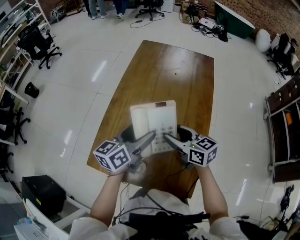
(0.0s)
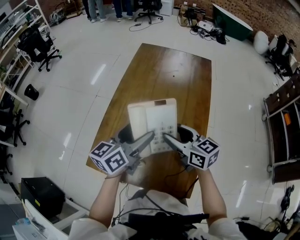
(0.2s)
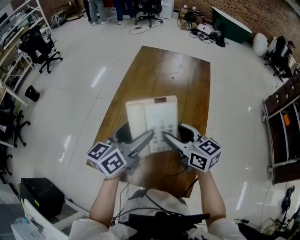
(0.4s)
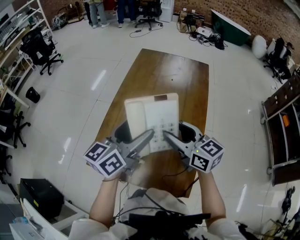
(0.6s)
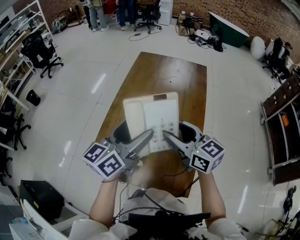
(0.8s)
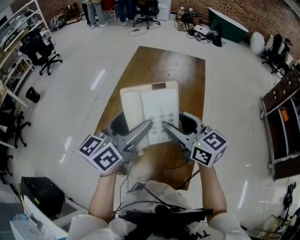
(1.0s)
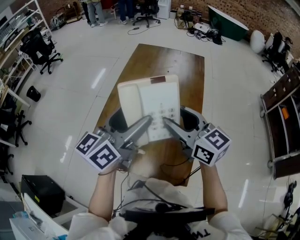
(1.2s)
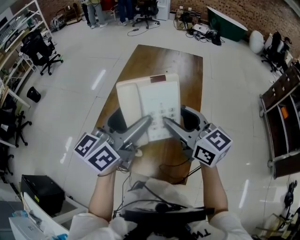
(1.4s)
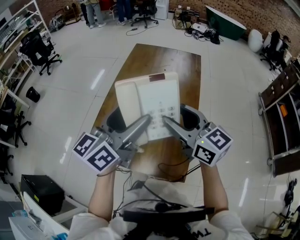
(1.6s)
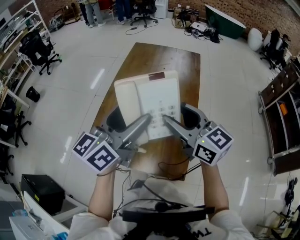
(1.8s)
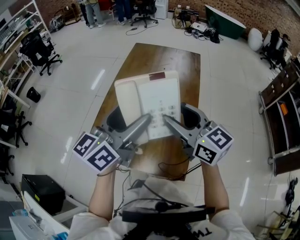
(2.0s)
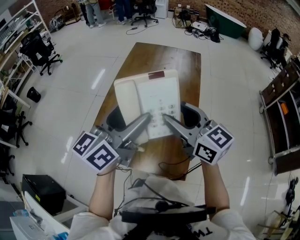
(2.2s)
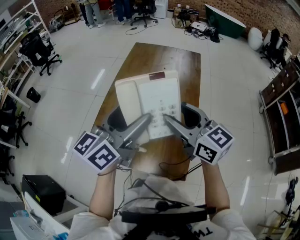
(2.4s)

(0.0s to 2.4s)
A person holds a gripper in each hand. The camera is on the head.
0.0s - 1.2s: Both grippers travel together upward and backward, roughly 15 cm.
1.2s - 2.4s: The grippers stay close to where they were, moving slightly.

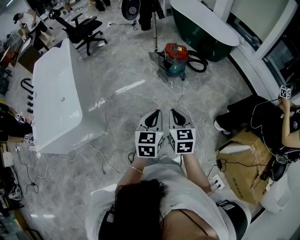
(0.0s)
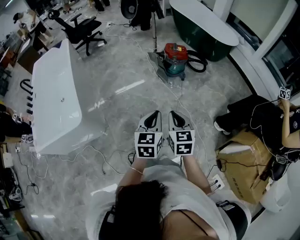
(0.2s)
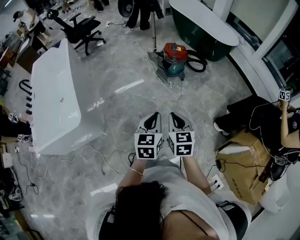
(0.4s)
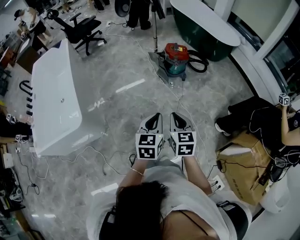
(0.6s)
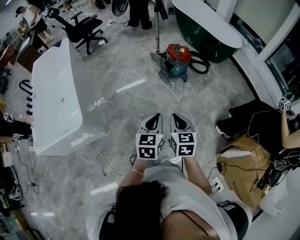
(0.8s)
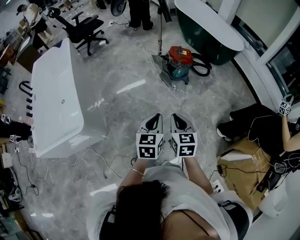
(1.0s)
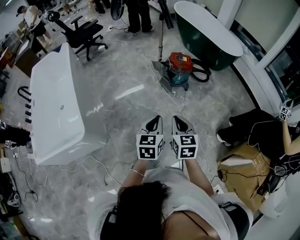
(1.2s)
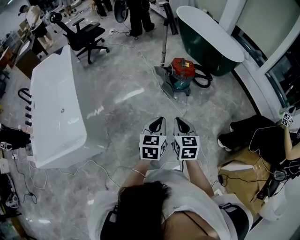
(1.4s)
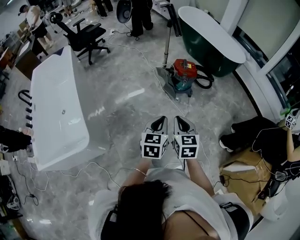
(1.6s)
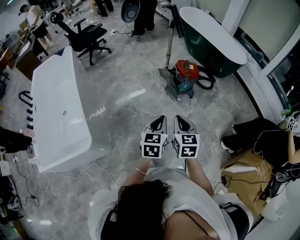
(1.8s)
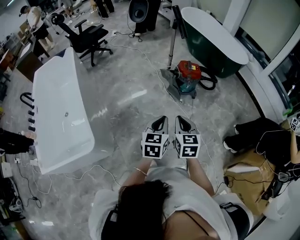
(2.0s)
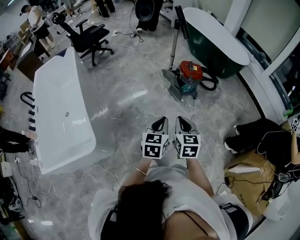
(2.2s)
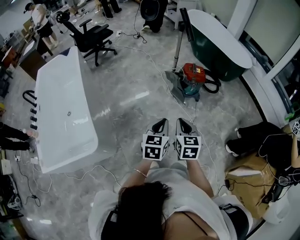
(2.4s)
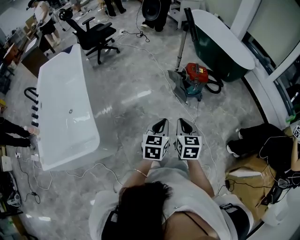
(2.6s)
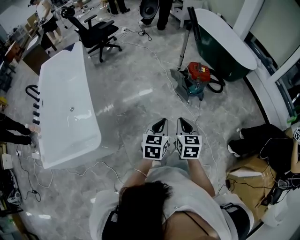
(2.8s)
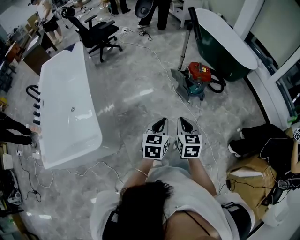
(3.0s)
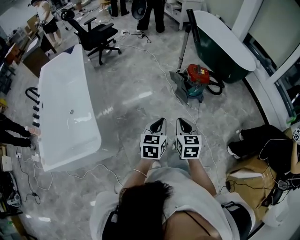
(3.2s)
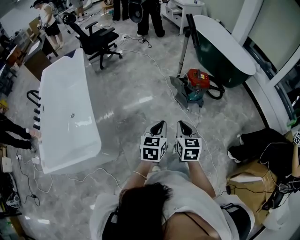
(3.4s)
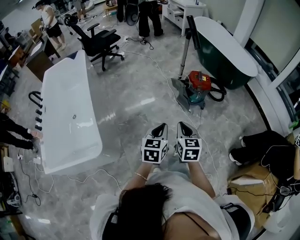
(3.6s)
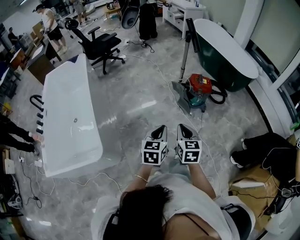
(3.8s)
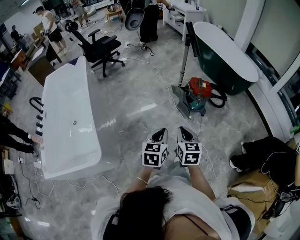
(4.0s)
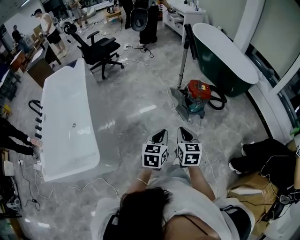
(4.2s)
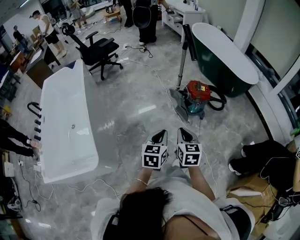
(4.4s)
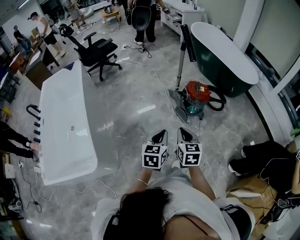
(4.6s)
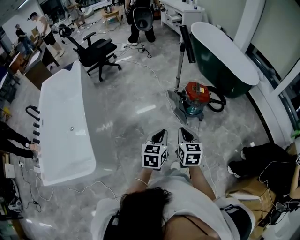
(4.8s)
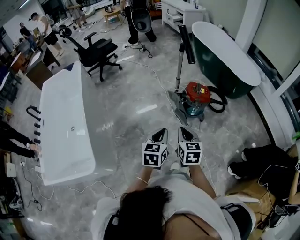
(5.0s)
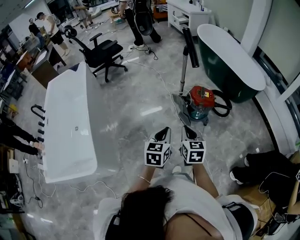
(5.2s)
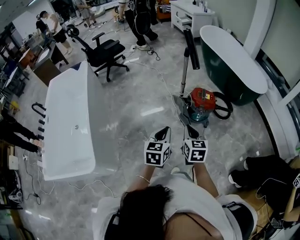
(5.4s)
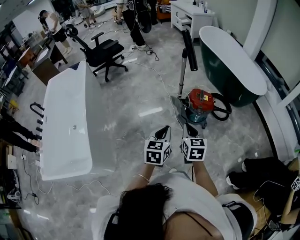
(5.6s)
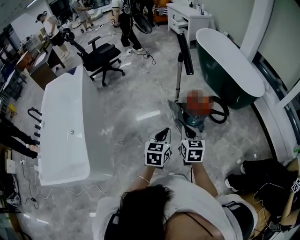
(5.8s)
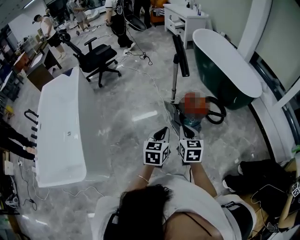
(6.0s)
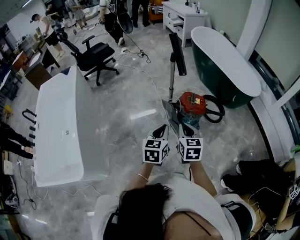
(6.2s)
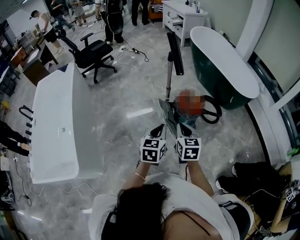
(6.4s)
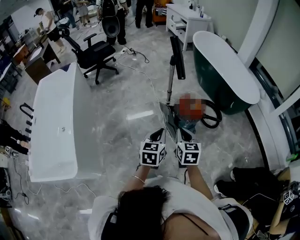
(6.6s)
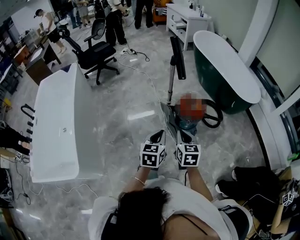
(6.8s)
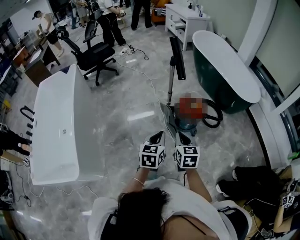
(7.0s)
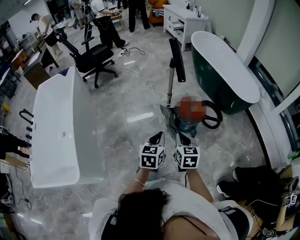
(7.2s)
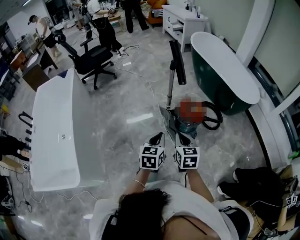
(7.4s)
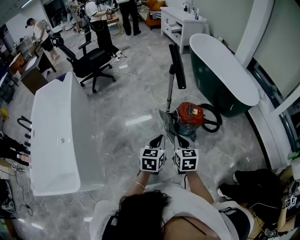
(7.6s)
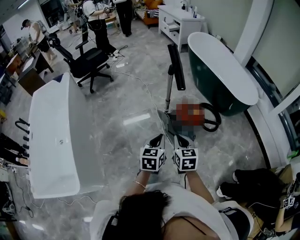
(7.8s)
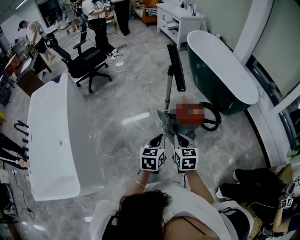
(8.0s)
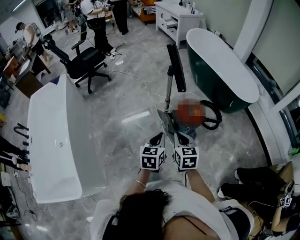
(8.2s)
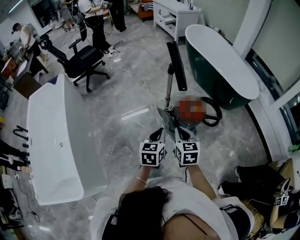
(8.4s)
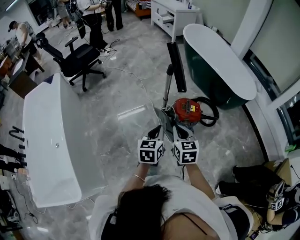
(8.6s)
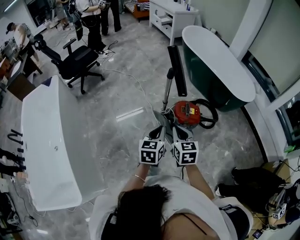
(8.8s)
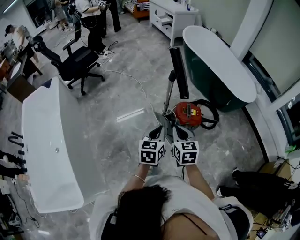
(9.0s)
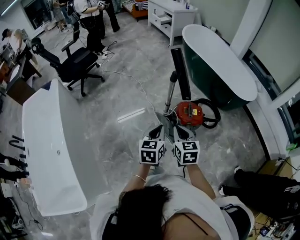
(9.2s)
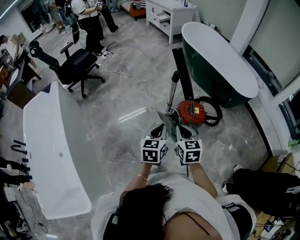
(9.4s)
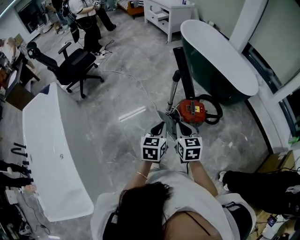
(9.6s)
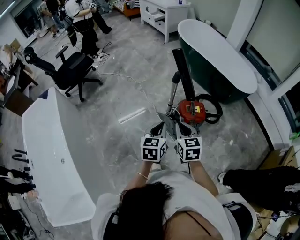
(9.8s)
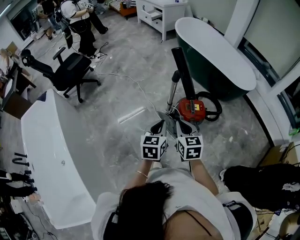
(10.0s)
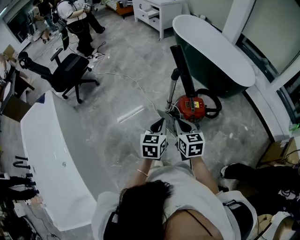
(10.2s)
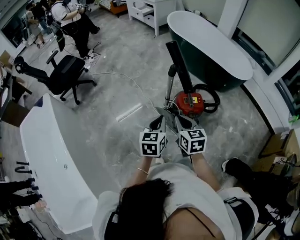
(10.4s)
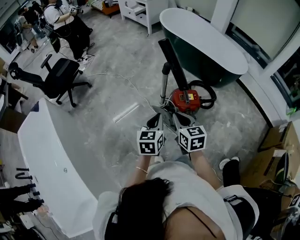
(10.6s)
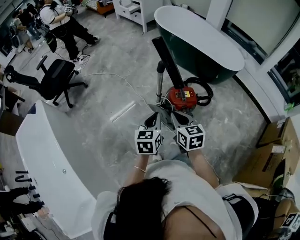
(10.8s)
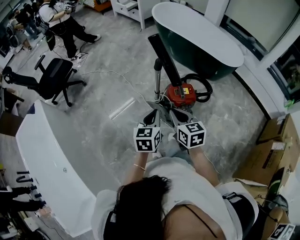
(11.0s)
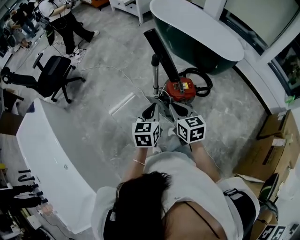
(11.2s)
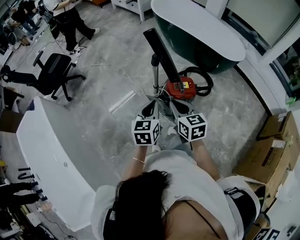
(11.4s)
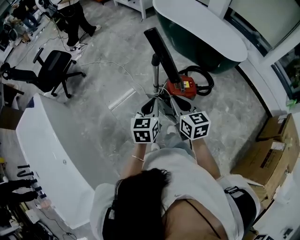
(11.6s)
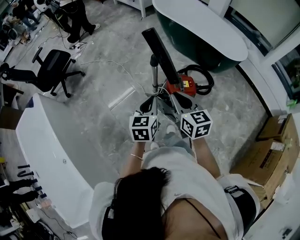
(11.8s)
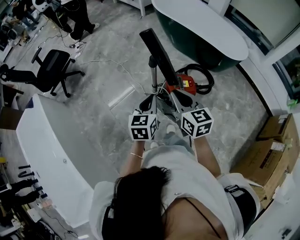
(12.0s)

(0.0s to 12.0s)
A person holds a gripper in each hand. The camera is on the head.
0.0s - 1.6s: Both grippers travel together forward and to the left, approximately 15 cm.
1.6s - 3.0s: The two grippers go roughly 10 cm to the left.
3.0s - 4.4s: Both grippers travel together forward, approximately 10 cm.
4.4s - 6.0s: Both grippers travel together forward and to the right, some 20 cm.
6.0s - 7.6s: The right gripper ends up roughly 5 cm from where it was, while the left gripper travels forward by approximately 5 cm.
7.6s - 9.0s: Both grippers travel together forward, roughly 15 cm.
9.0s - 10.4s: The left gripper is displaced forward by about 5 cm. Meanwhile the right gripper shifts by some 5 cm.
10.4s - 12.0s: The right gripper goes roughly 10 cm forward, to the right and upward; the left gripper shifts roughly 5 cm forward.

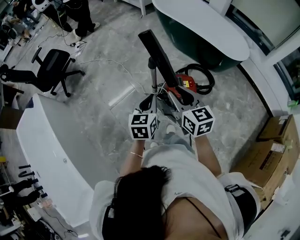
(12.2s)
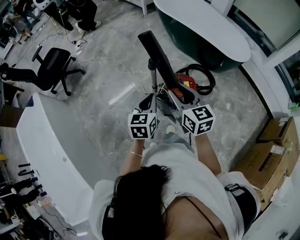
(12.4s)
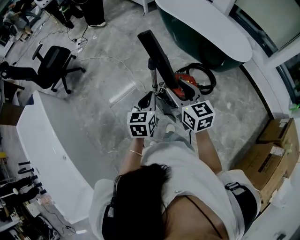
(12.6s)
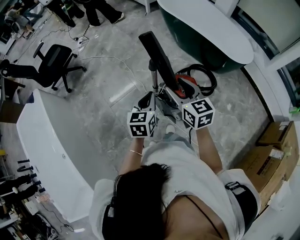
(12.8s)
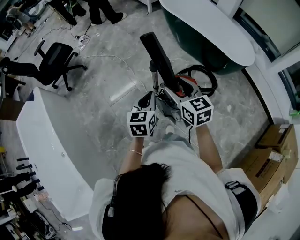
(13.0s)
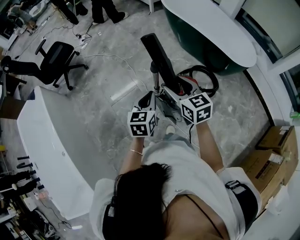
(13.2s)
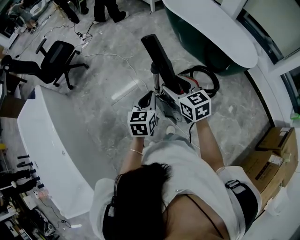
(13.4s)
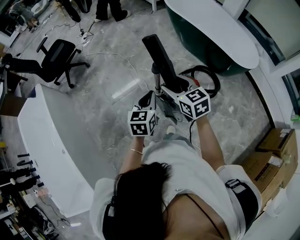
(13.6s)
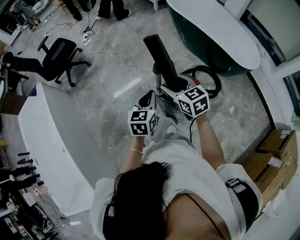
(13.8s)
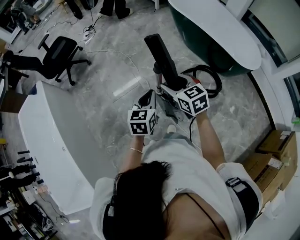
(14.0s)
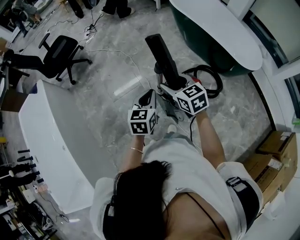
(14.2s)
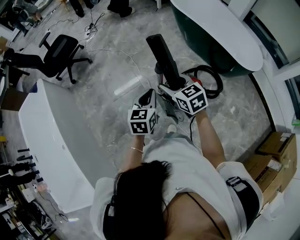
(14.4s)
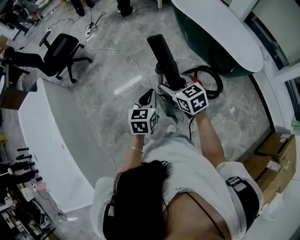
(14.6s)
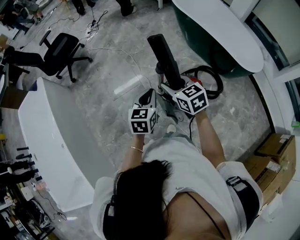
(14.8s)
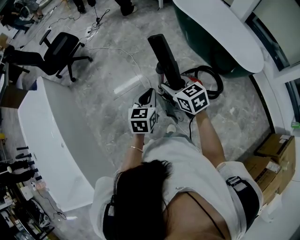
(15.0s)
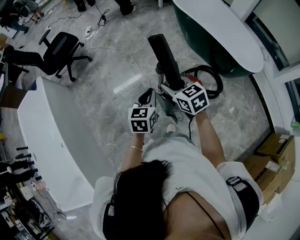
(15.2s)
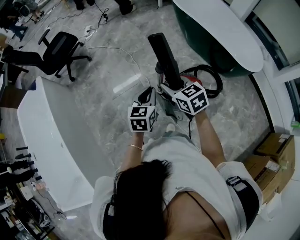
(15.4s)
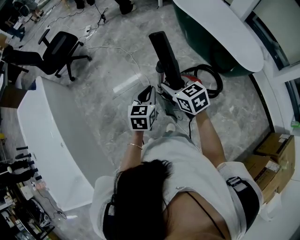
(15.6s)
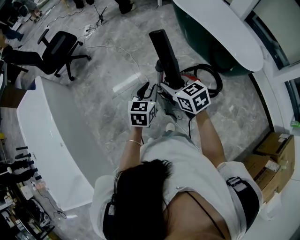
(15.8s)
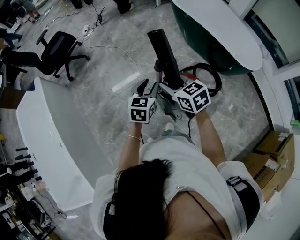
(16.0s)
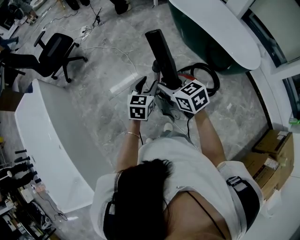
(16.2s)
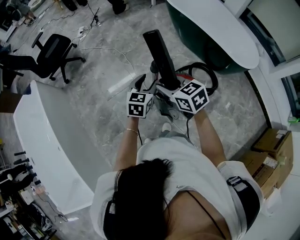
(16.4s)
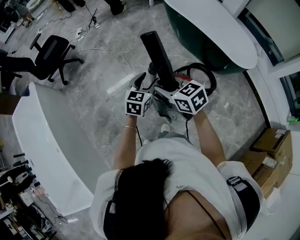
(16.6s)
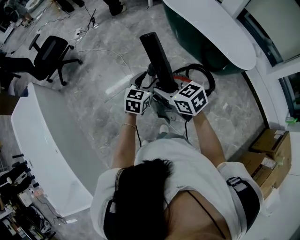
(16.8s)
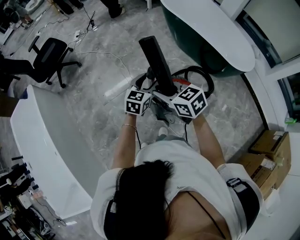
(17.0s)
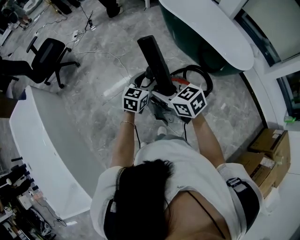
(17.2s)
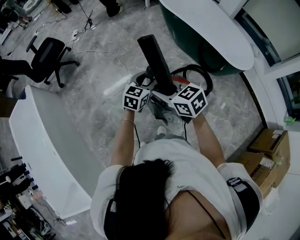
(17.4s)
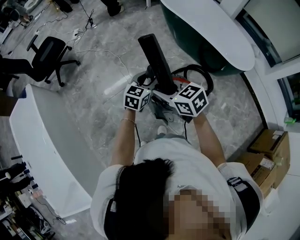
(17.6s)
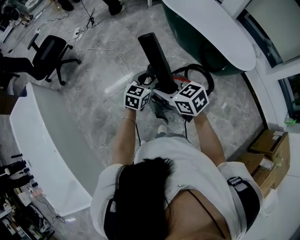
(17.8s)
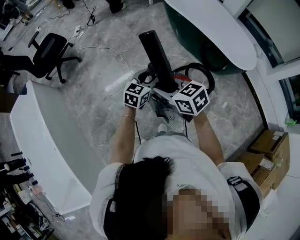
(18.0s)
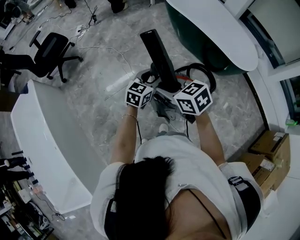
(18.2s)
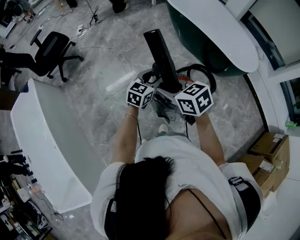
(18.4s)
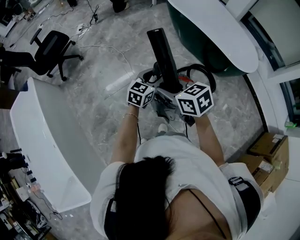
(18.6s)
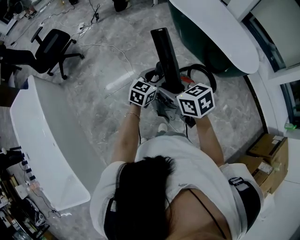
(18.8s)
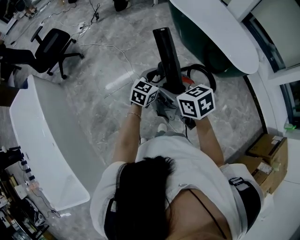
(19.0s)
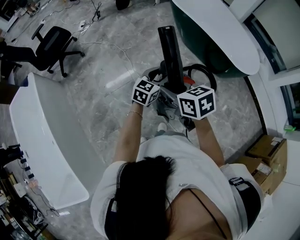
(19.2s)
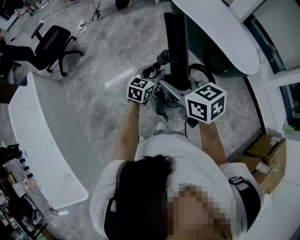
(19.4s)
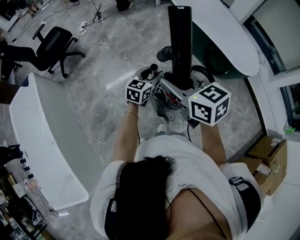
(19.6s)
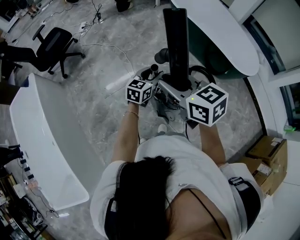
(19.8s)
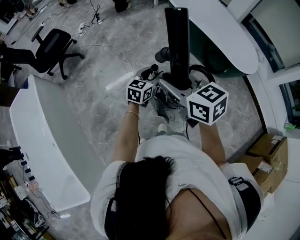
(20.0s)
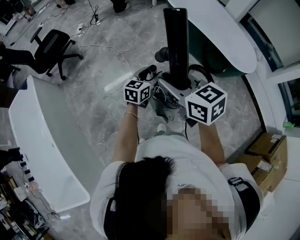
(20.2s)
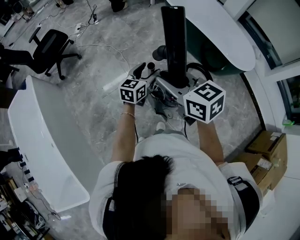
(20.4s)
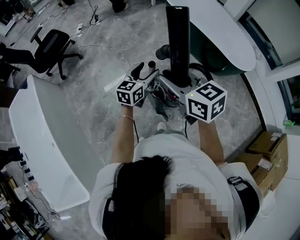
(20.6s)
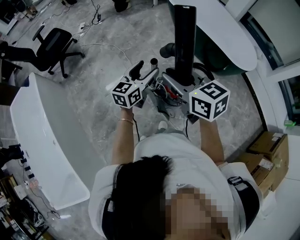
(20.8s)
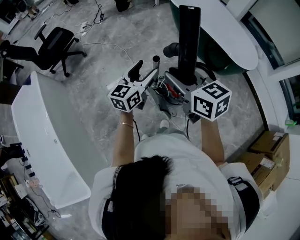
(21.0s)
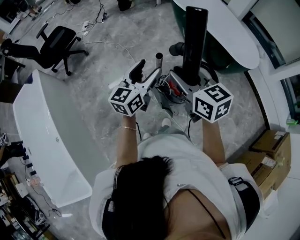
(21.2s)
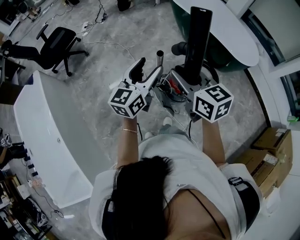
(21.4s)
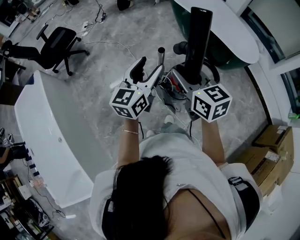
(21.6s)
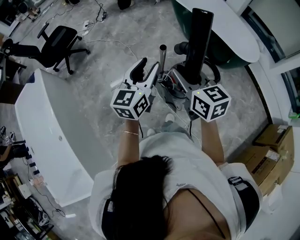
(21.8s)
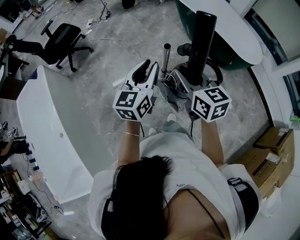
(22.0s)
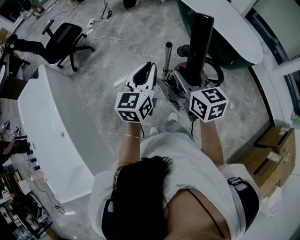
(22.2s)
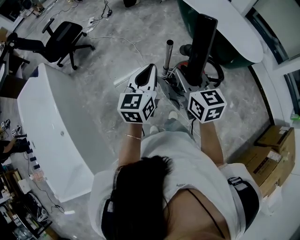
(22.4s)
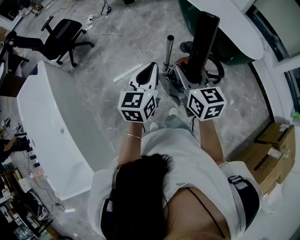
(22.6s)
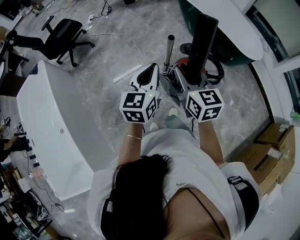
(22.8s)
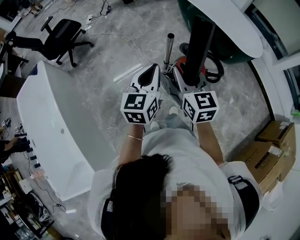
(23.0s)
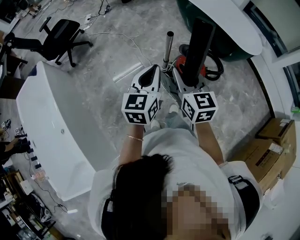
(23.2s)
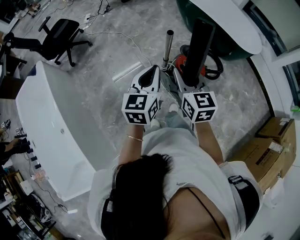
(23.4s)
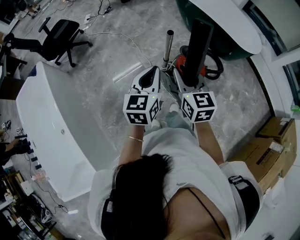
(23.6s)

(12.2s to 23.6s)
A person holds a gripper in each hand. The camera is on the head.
12.2s - 13.6s: The right gripper is displaced forward by approximately 10 cm, and opens.
13.6s - 15.0s: The right gripper closes its fingers.
15.0s - 16.4s: The left gripper heads forward and to the right, covering approximately 10 cm, and opens up.
16.4s - 17.8s: The left gripper shifts some 5 cm to the right.
17.8s - 19.4s: The right gripper is displaced upward by some 10 cm.
19.4s - 20.8s: The left gripper moves upward and to the left, some 10 cm, and opens.
20.8s - 22.2s: The right gripper shifts some 5 cm backward. Meanwhile the left gripper is displaced backward, upward and to the left by some 15 cm, and closes up.
22.2s - 23.6s: The right gripper moves approximately 5 cm. The left gripper moves backward, approximately 5 cm.
